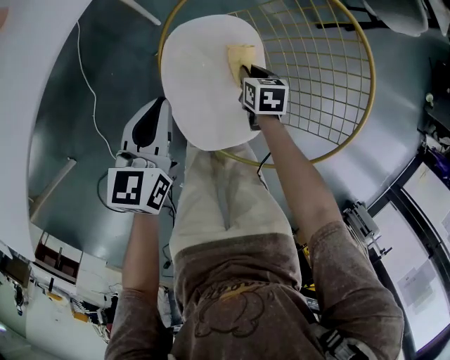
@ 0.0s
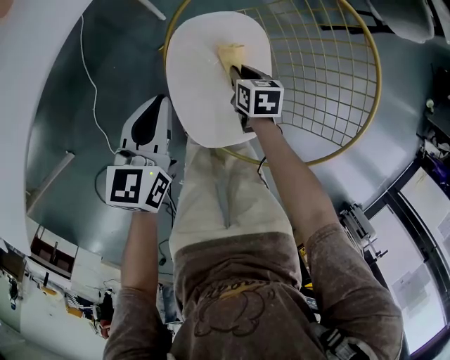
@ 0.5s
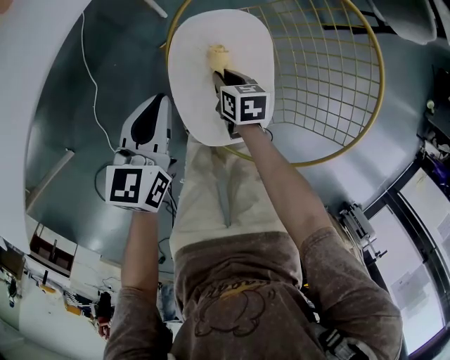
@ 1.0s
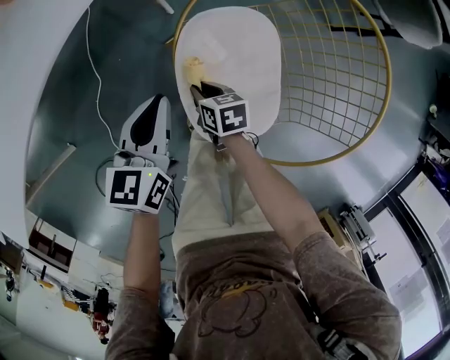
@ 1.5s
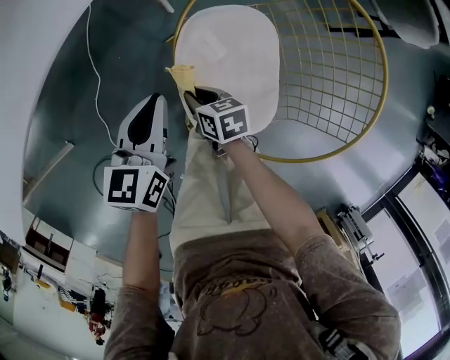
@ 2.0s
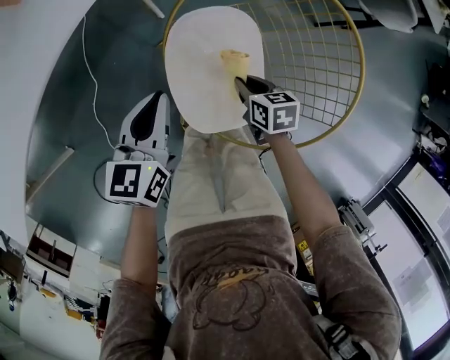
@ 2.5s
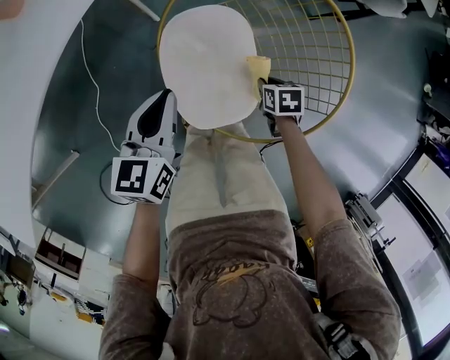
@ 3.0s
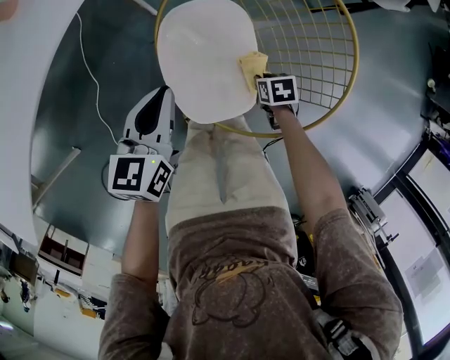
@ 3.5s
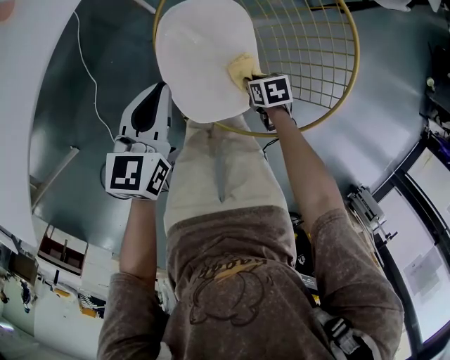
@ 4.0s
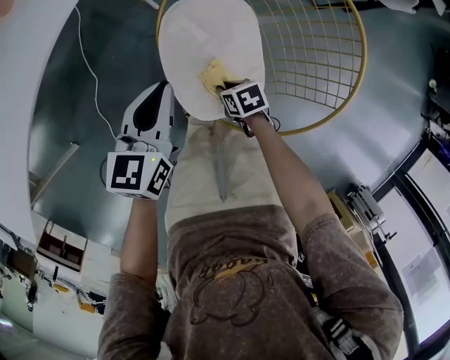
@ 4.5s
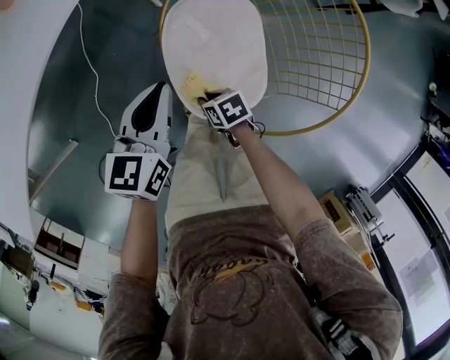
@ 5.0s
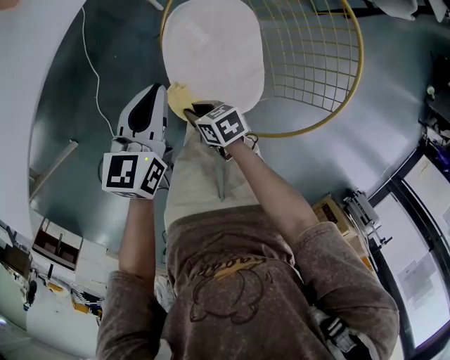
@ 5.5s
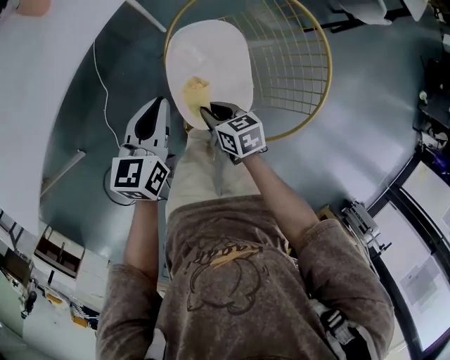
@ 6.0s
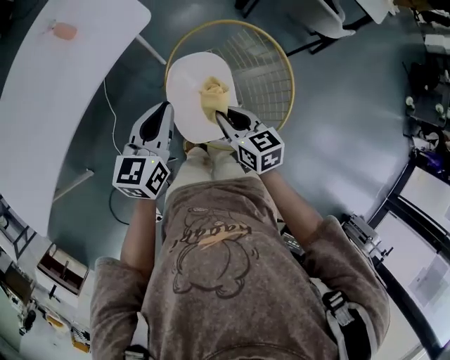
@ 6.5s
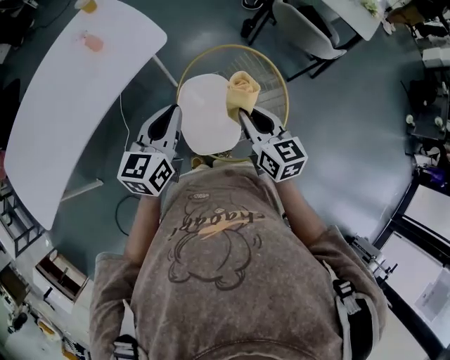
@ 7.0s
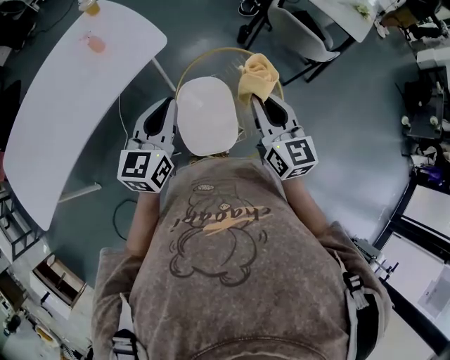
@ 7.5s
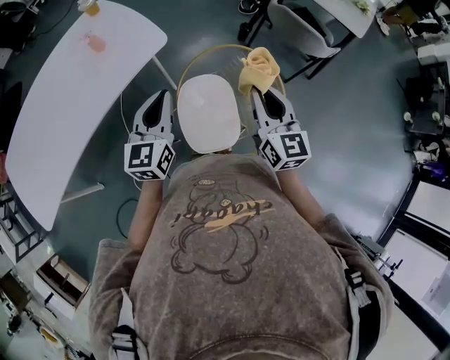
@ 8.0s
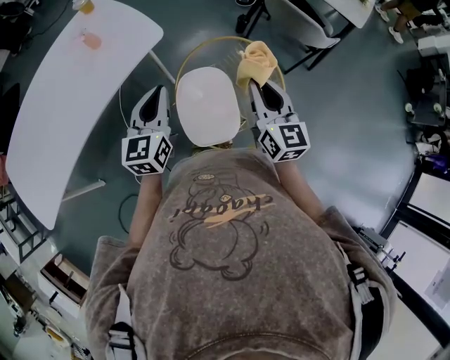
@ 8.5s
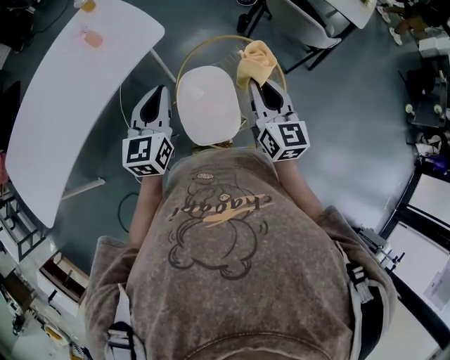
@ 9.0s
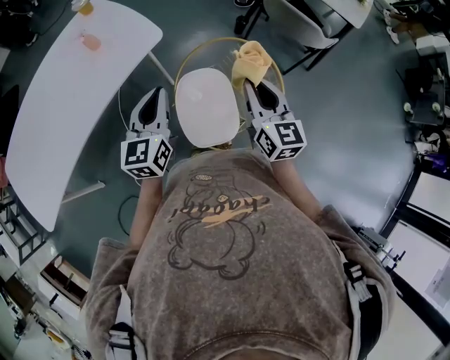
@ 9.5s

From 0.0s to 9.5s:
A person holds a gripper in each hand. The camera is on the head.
From 0.0s to 2.0s: The right gripper travels to the left by approximately 20 cm, and changes its angle by about 30 degrees, while the left gripper ends up roughly 5 cm from where it was.
From 2.0s to 4.0s: The right gripper shifts by roughly 25 cm, and swivels approximately 20 degrees. Meanwhile the left gripper moves roughly 10 cm.
From 4.0s to 5.5s: The right gripper is displaced to the left by some 20 cm, and rotates about 30 degrees.
From 5.5s to 7.5s: The left gripper goes some 35 cm upward, and rotates some 20 degrees. The right gripper is displaced upward by approximately 50 cm, and points its fingers some 40 degrees further upward.
From 7.5s to 9.5s: The grippers make only small movements.

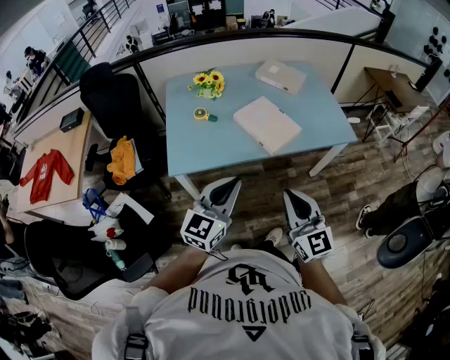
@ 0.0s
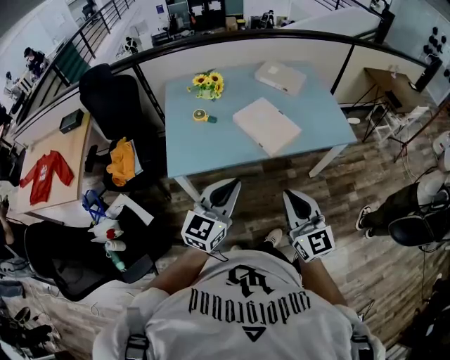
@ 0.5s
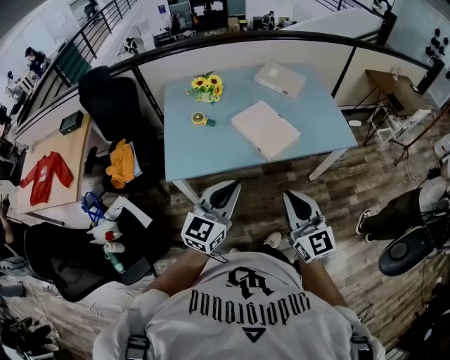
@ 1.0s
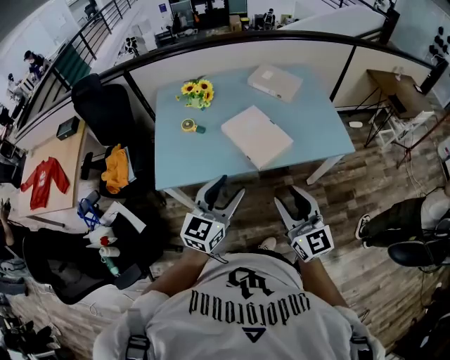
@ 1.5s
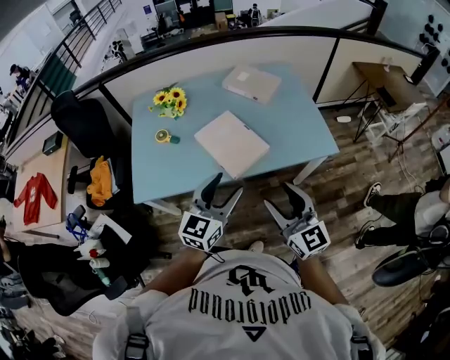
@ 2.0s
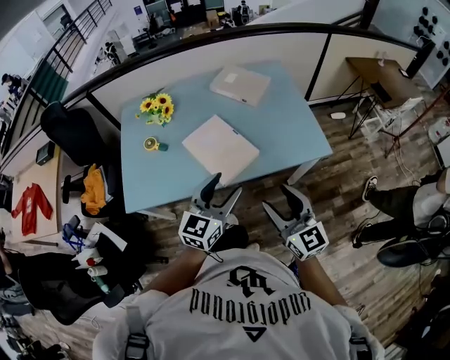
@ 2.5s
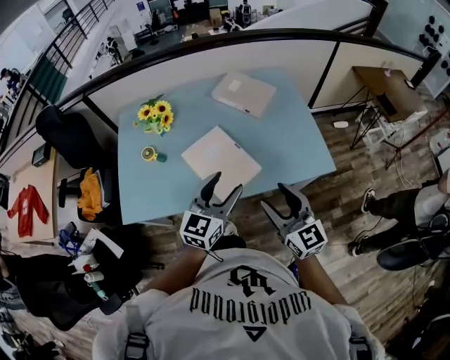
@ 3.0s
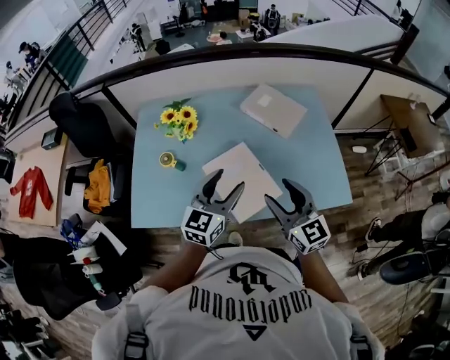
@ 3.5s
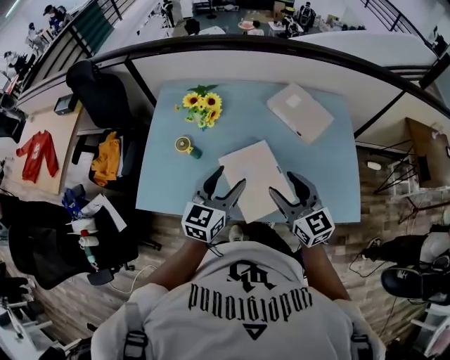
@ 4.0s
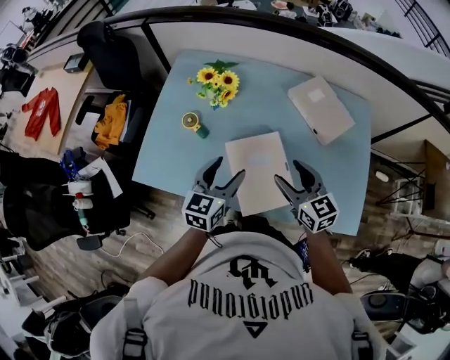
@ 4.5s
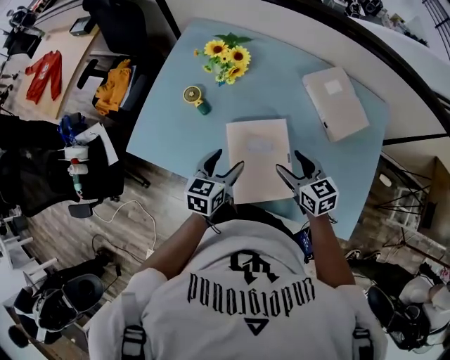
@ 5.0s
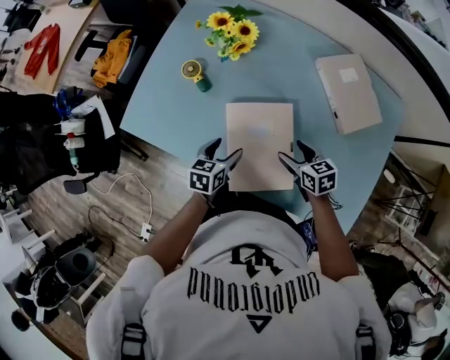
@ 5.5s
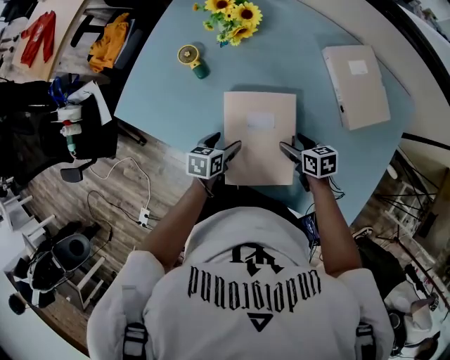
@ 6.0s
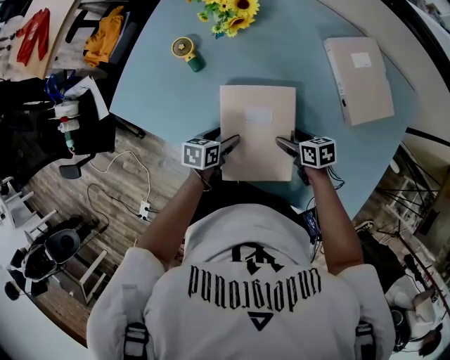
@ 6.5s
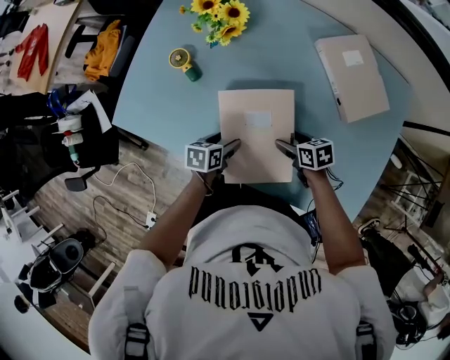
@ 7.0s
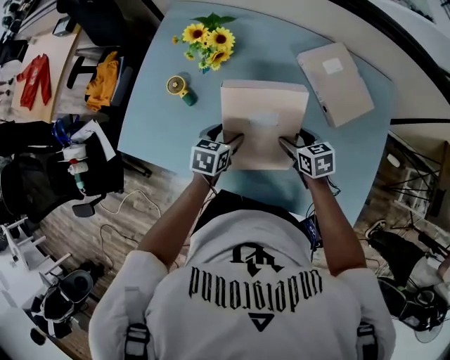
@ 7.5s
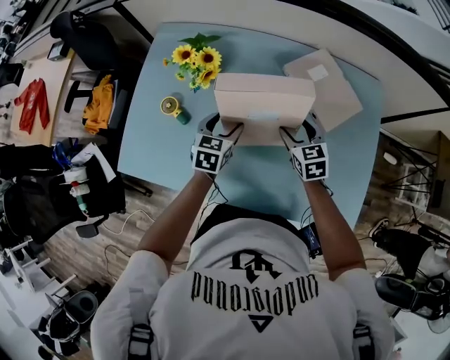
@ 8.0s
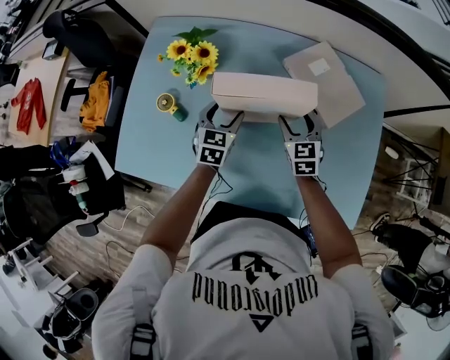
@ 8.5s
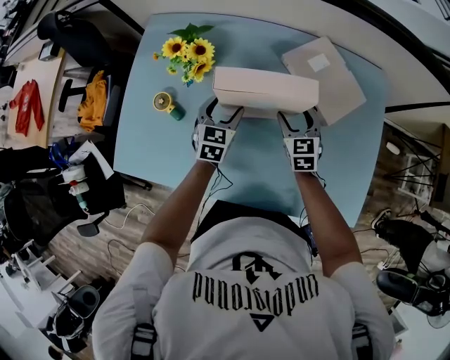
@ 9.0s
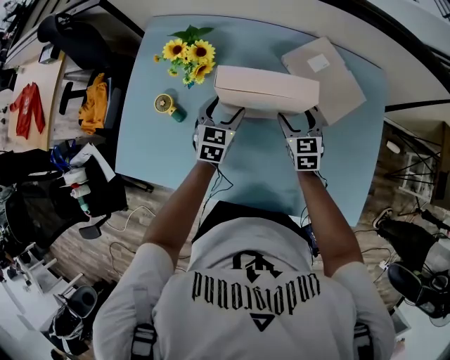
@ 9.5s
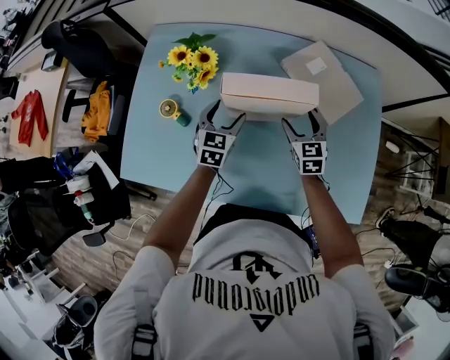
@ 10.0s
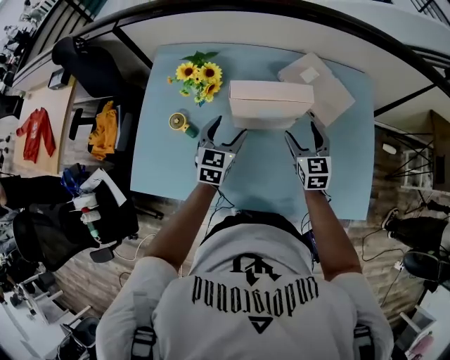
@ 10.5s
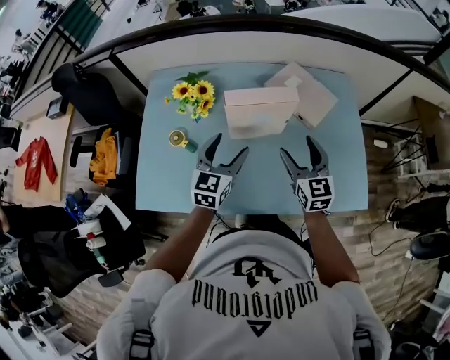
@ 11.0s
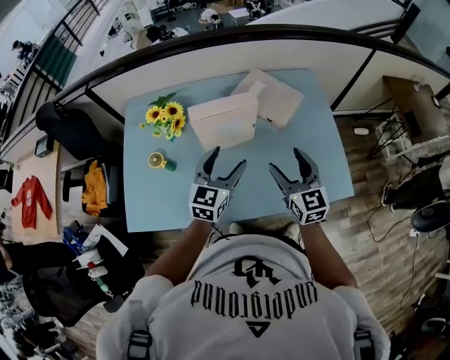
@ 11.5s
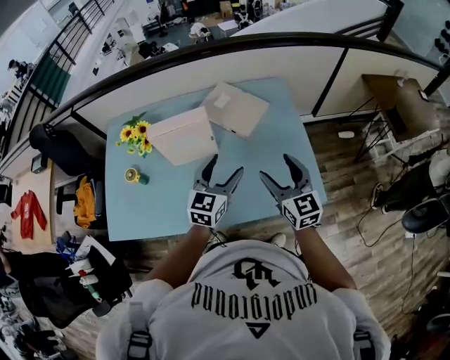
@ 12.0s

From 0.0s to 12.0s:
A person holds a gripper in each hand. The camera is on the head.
From 0.0s to 2.0s: Both grippers travel together to the right and forward, about 25 cm. The right gripper opens. Meanwhile the left gripper opens its fingers.
From 2.0s to 4.0s: Both grippers travel together forward, roughly 30 cm.
From 4.0s to 6.0s: Both grippers move downward, about 35 cm. The right gripper tips its fingers downward by approximately 40 degrees. The left gripper angles its fingers downward, by about 40 degrees.
From 6.0s to 8.0s: The left gripper moves forward, upward and to the right, about 25 cm, and rotates approximately 30 degrees; the right gripper travels upward, forward and to the right by about 20 cm, and rotates approximately 40 degrees.
From 8.0s to 10.0s: There are only small adjustments of the grippers.
From 10.0s to 12.0s: The right gripper travels backward, upward and to the right by approximately 40 cm, and rotates approximately 20 degrees. The left gripper heads to the right, upward and backward, covering roughly 35 cm, and turns by about 30 degrees.

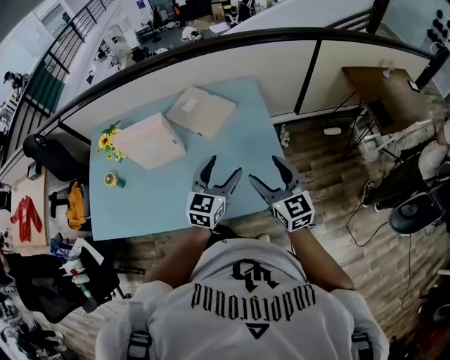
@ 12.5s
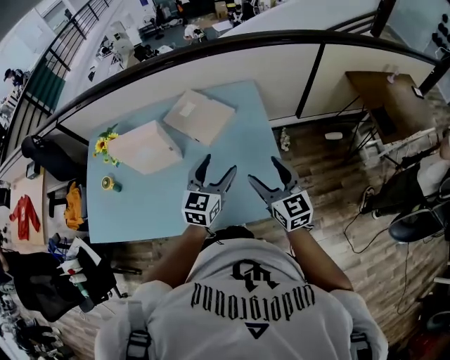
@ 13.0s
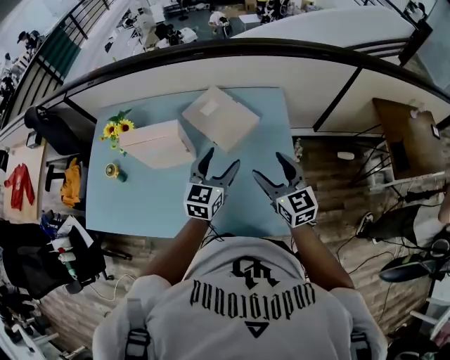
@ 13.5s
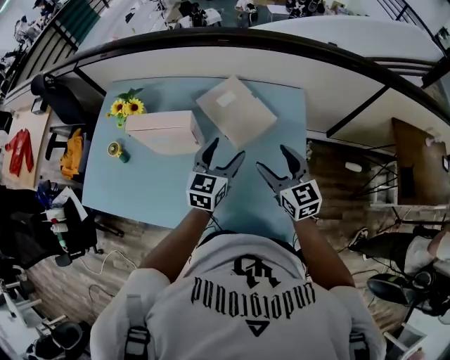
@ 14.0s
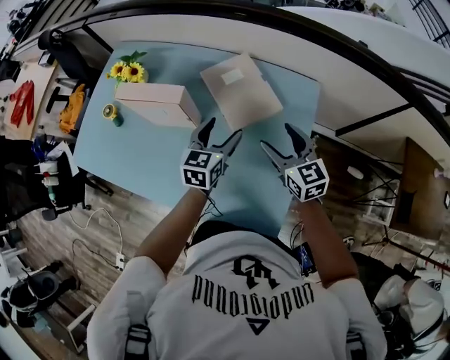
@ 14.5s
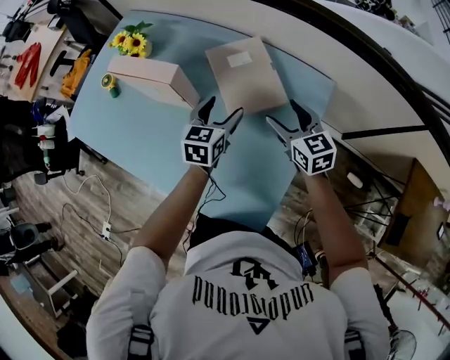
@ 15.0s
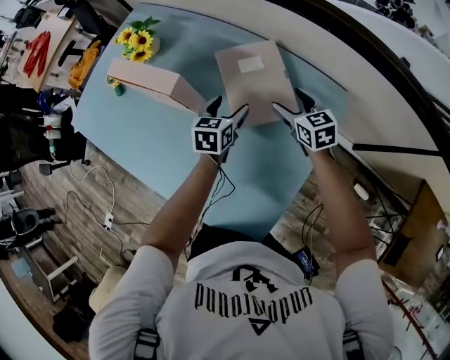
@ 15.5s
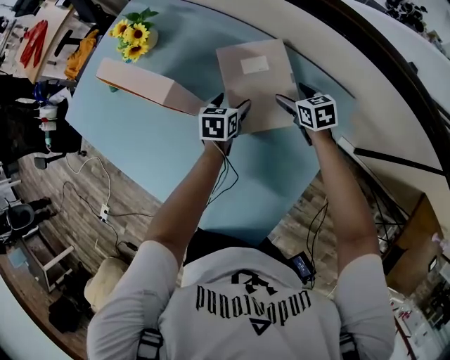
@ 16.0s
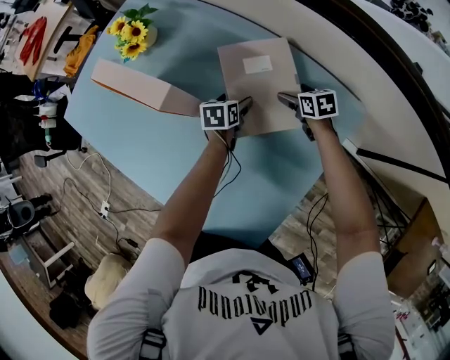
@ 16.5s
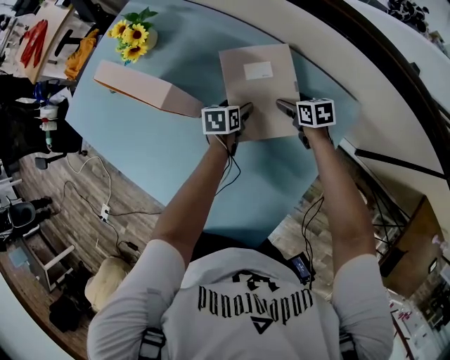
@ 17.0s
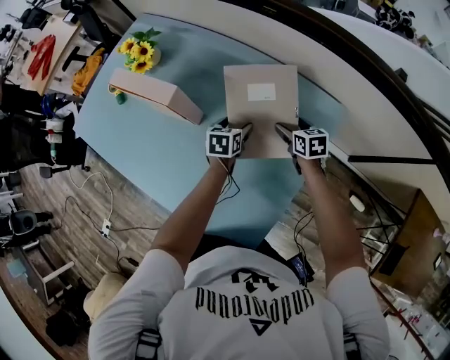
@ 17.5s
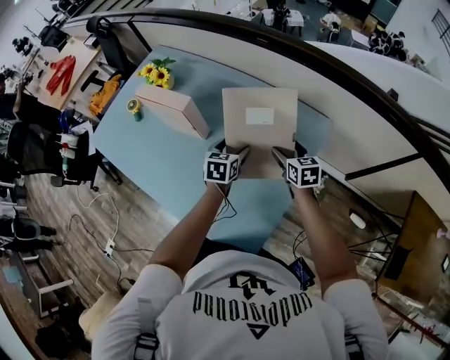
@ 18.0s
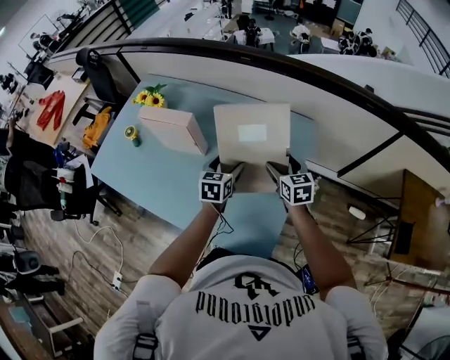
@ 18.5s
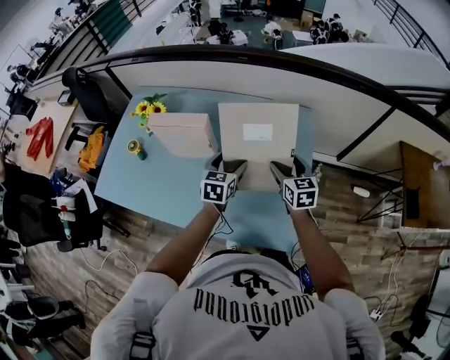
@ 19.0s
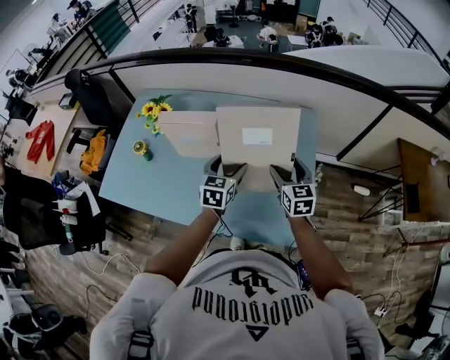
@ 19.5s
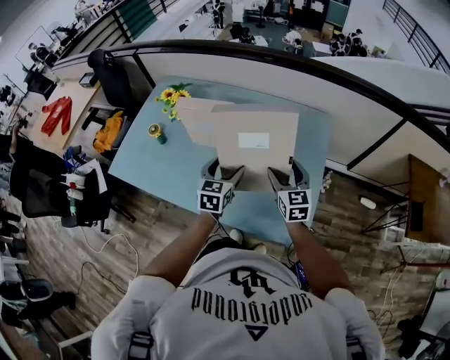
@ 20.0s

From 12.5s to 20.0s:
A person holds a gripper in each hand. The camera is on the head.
From 12.5s to 14.5s: The left gripper changes place by about 25 cm, and turns by approximately 30 degrees. The right gripper shifts by roughly 30 cm, and swivels about 30 degrees.
From 14.5s to 16.5s: Both grippers move downward and forward, approximately 35 cm. The right gripper angles its fingers downward, by some 30 degrees. Meanwhile the left gripper swivels approximately 40 degrees.
From 16.5s to 18.0s: The right gripper goes approximately 25 cm backward and upward, and rotates about 20 degrees. The left gripper shifts about 25 cm upward and backward, and turns by some 20 degrees.
From 18.0s to 20.0s: The right gripper moves backward, to the left and upward, approximately 30 cm, and rotates approximately 30 degrees, while the left gripper is displaced to the left, backward and upward by about 25 cm, and changes its angle by approximately 20 degrees.
